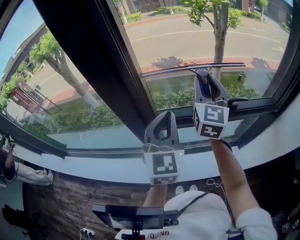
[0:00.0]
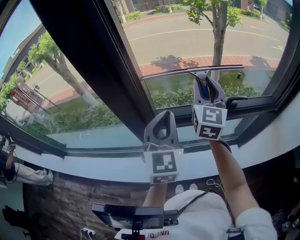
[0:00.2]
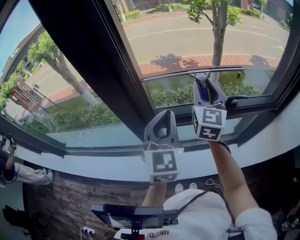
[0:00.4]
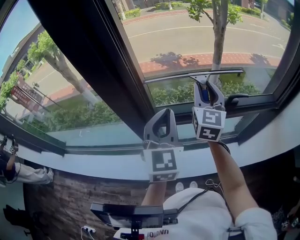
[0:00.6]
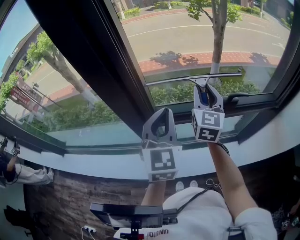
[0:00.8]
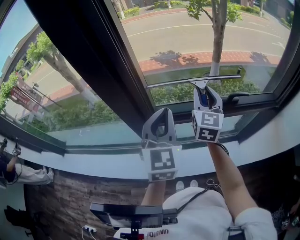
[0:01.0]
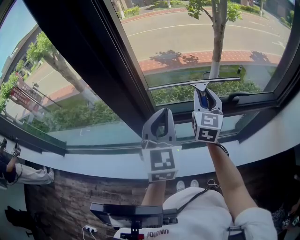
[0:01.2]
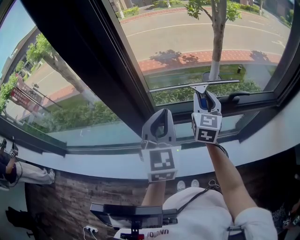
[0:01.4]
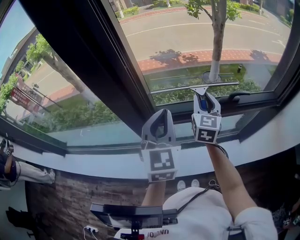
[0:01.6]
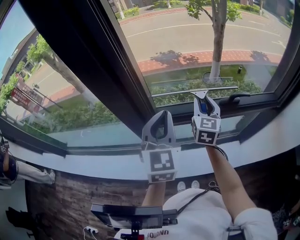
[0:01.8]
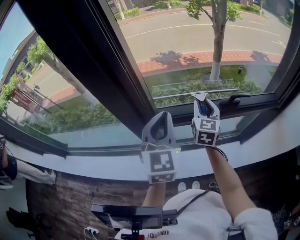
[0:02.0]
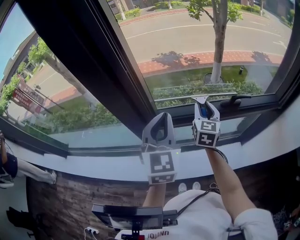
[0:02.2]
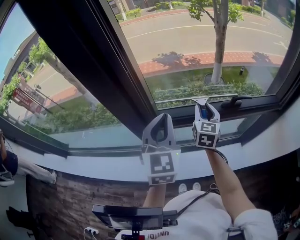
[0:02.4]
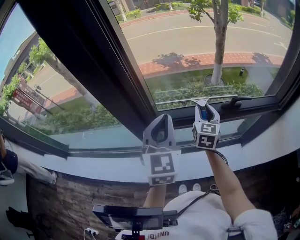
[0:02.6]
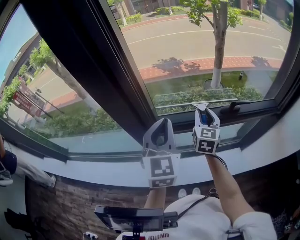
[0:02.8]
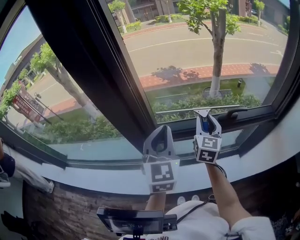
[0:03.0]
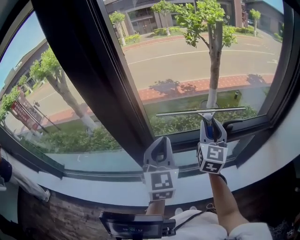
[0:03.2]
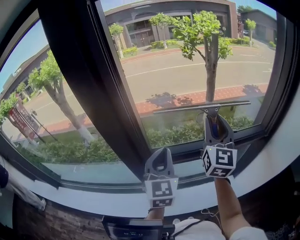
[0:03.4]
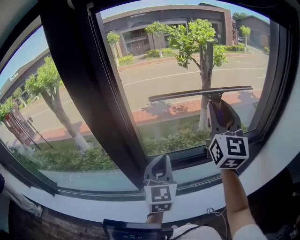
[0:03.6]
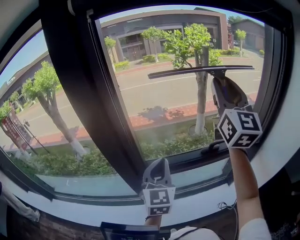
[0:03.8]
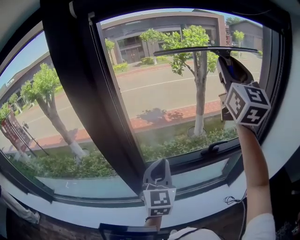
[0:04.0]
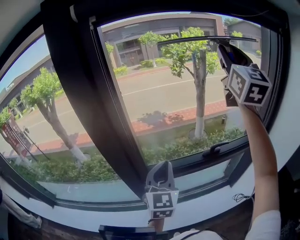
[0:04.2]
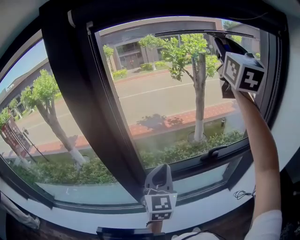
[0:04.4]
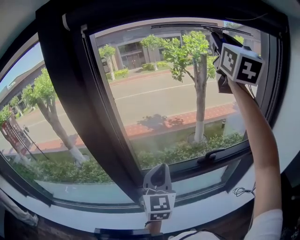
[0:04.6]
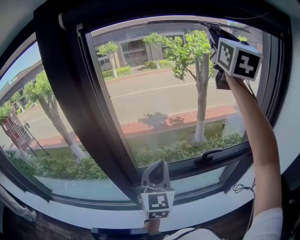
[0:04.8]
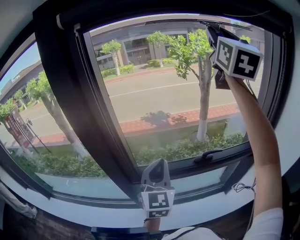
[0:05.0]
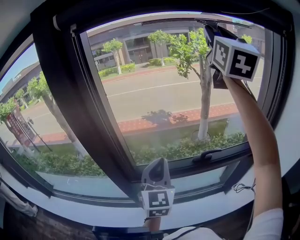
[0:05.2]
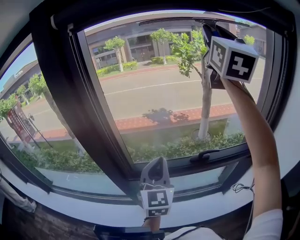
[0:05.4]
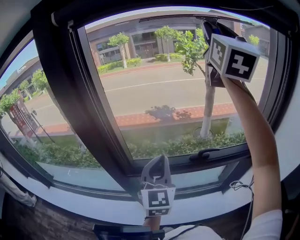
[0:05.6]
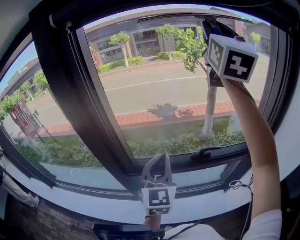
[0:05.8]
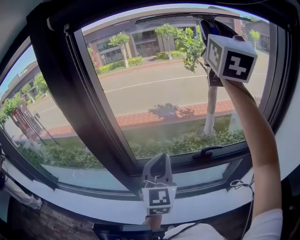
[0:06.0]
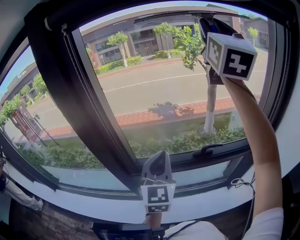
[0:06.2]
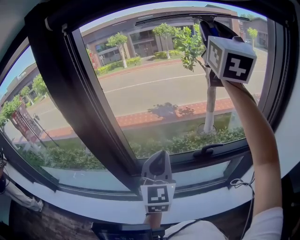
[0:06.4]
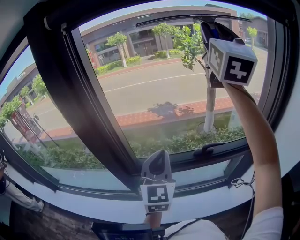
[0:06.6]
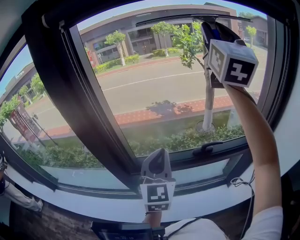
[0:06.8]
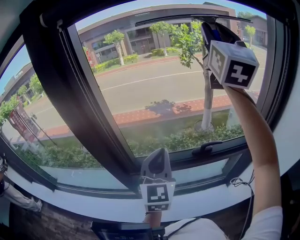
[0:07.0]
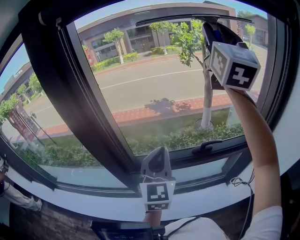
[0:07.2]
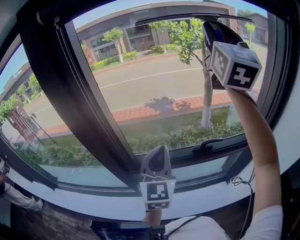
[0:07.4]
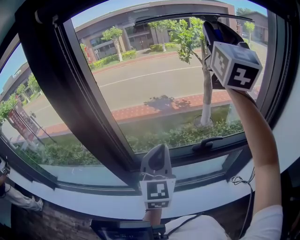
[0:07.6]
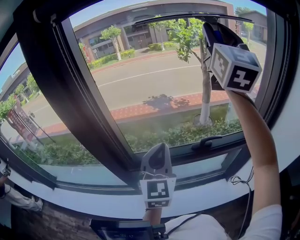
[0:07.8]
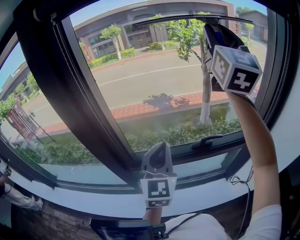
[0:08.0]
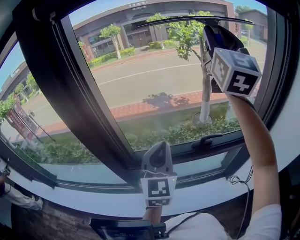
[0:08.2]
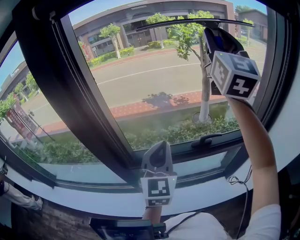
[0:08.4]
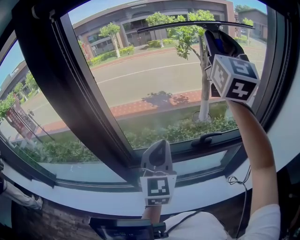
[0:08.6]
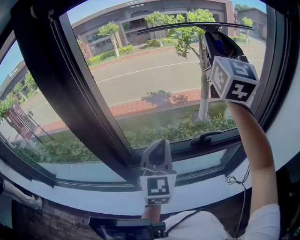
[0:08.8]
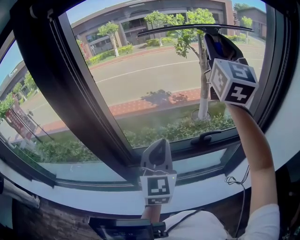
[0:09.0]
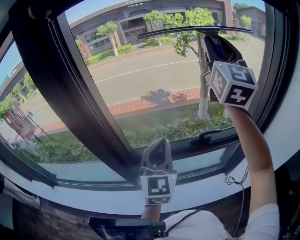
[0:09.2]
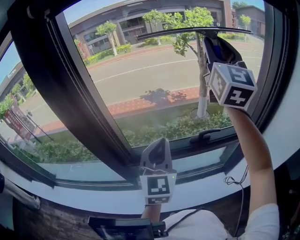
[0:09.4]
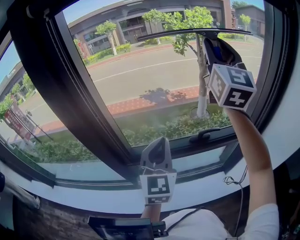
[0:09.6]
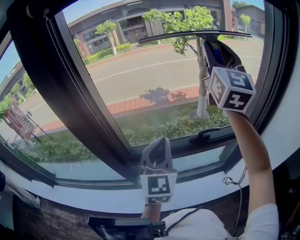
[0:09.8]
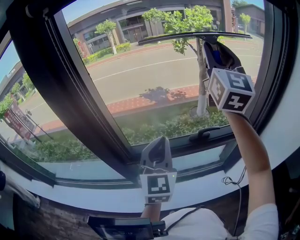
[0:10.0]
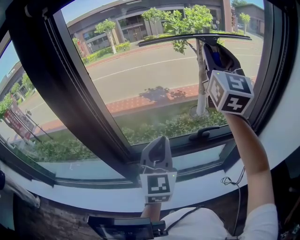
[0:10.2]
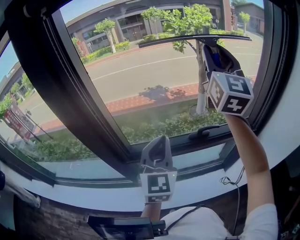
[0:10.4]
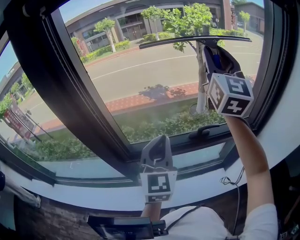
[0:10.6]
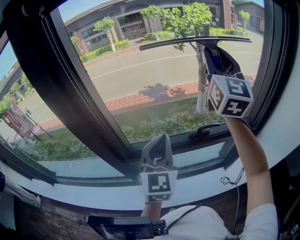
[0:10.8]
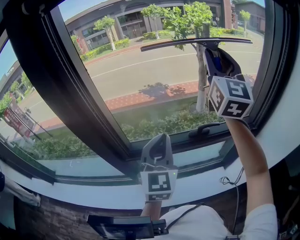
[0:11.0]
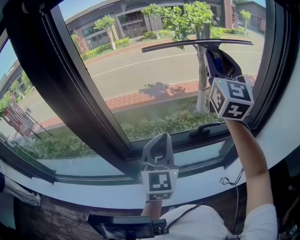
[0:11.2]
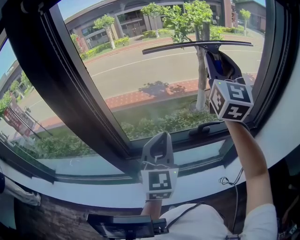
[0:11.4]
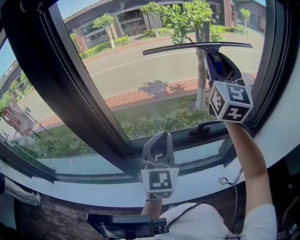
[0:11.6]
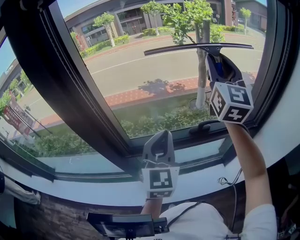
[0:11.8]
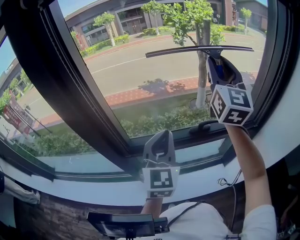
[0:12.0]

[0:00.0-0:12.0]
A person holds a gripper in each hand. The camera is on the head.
0:00.0 to 0:01.6: The right gripper moves downward, roughly 15 cm.
0:01.6 to 0:03.0: The grippers move only a little.
0:03.0 to 0:04.4: The left gripper changes place by roughly 5 cm; the right gripper heads upward, covering roughly 50 cm, and tips its fingers upward by roughly 40 degrees.
0:04.4 to 0:06.0: The left gripper shifts some 5 cm to the right.
0:06.0 to 0:07.6: There are only small adjustments of the grippers.
0:07.6 to 0:09.0: The right gripper heads downward, covering about 5 cm.
0:09.0 to 0:10.4: The right gripper travels downward by some 5 cm.
0:10.4 to 0:12.0: The right gripper heads downward, covering roughly 5 cm.

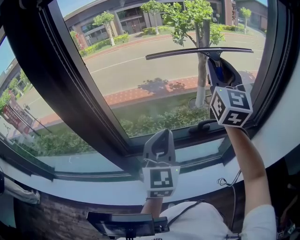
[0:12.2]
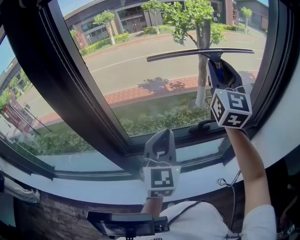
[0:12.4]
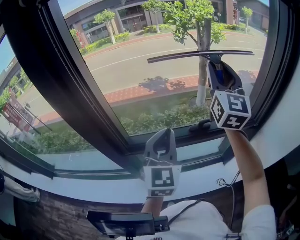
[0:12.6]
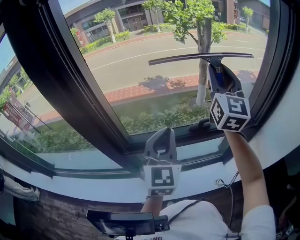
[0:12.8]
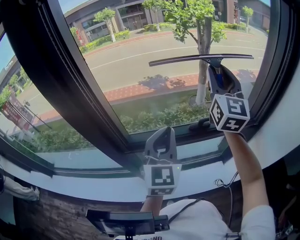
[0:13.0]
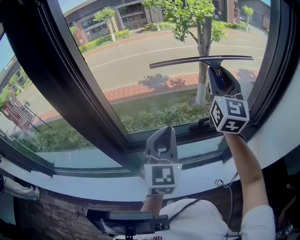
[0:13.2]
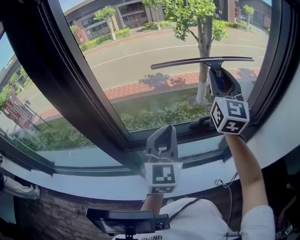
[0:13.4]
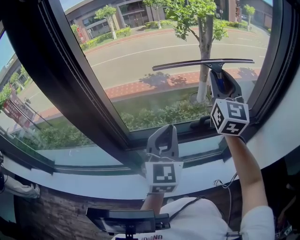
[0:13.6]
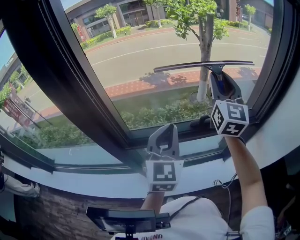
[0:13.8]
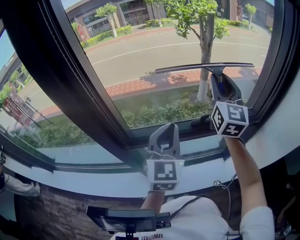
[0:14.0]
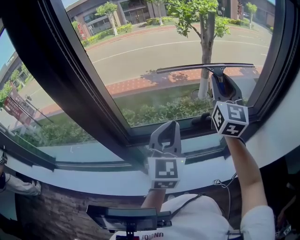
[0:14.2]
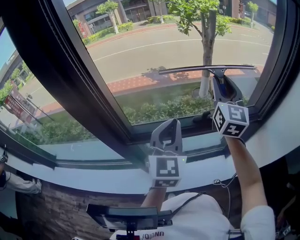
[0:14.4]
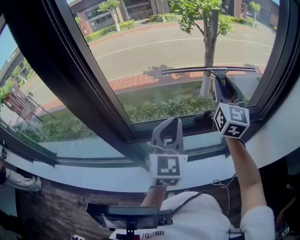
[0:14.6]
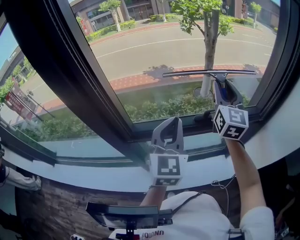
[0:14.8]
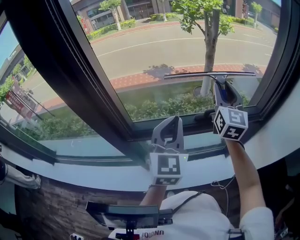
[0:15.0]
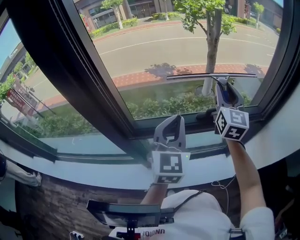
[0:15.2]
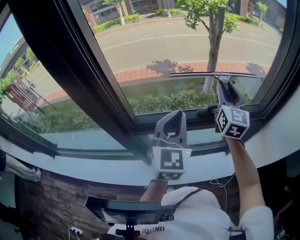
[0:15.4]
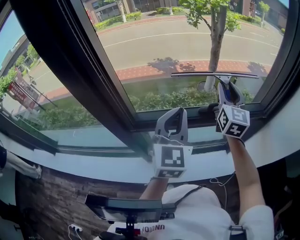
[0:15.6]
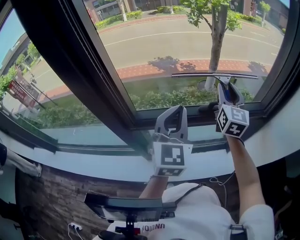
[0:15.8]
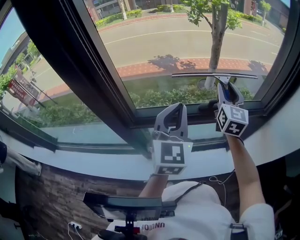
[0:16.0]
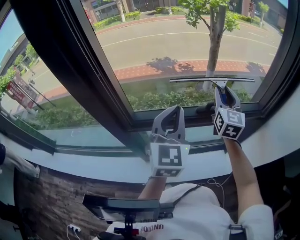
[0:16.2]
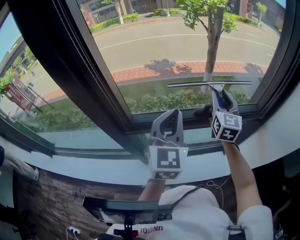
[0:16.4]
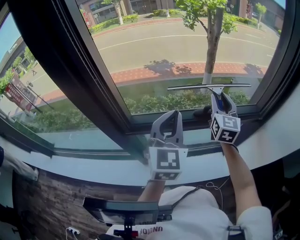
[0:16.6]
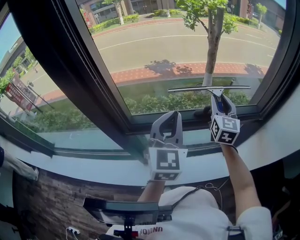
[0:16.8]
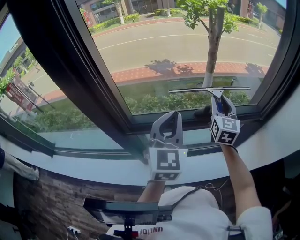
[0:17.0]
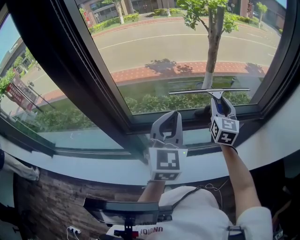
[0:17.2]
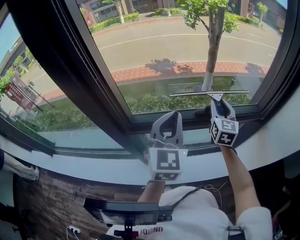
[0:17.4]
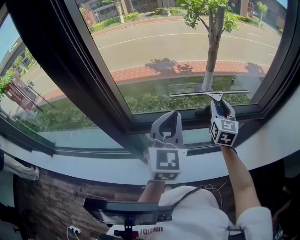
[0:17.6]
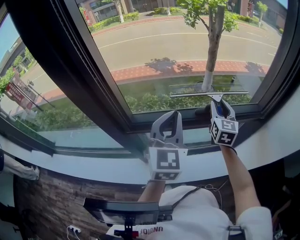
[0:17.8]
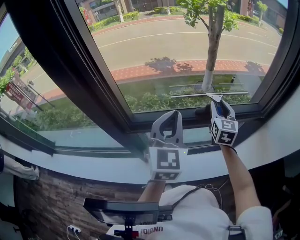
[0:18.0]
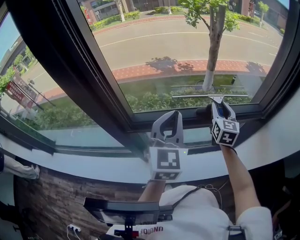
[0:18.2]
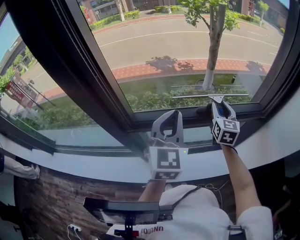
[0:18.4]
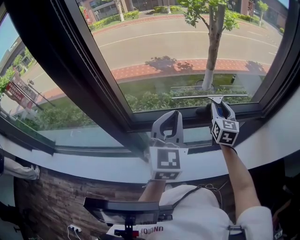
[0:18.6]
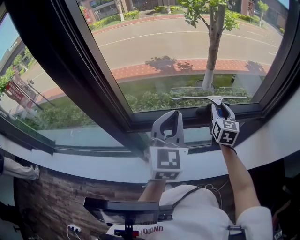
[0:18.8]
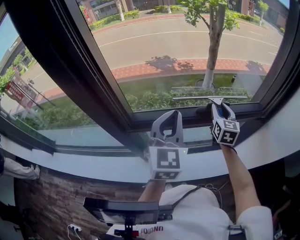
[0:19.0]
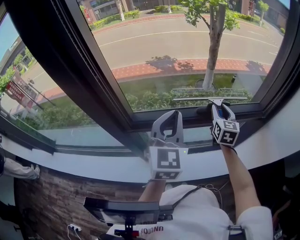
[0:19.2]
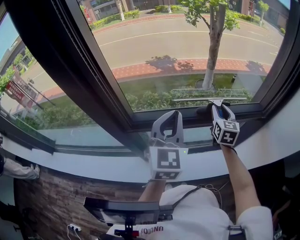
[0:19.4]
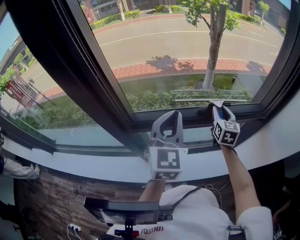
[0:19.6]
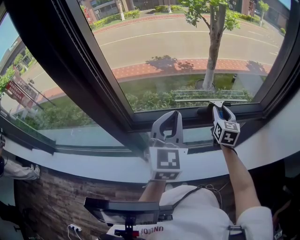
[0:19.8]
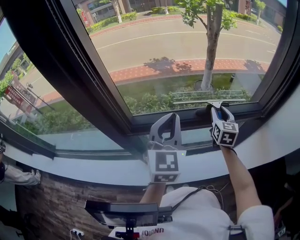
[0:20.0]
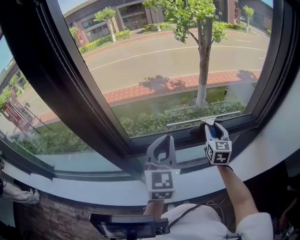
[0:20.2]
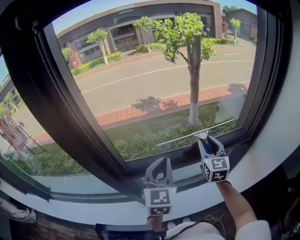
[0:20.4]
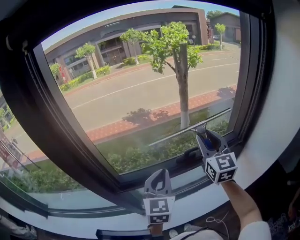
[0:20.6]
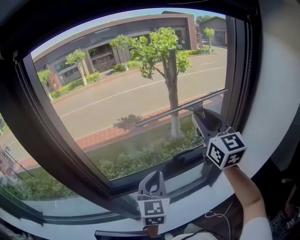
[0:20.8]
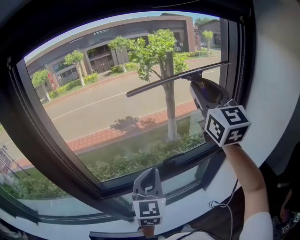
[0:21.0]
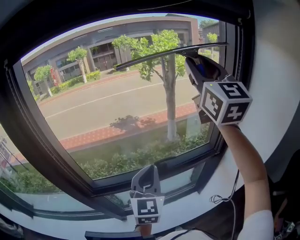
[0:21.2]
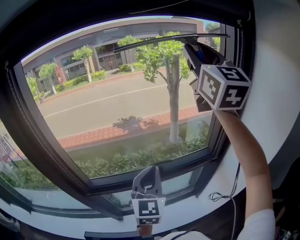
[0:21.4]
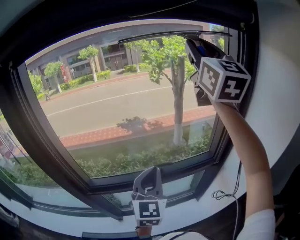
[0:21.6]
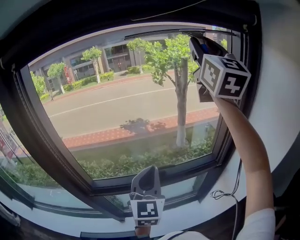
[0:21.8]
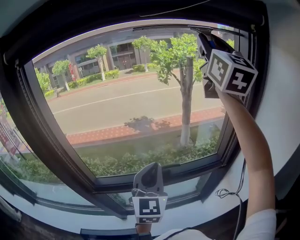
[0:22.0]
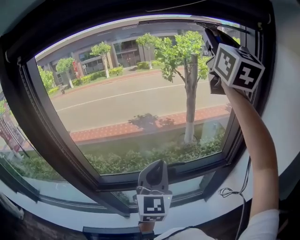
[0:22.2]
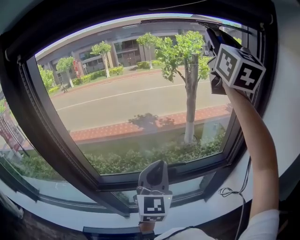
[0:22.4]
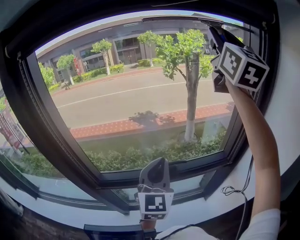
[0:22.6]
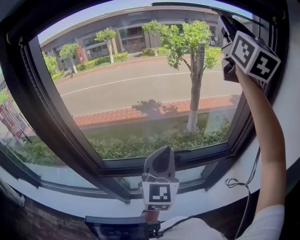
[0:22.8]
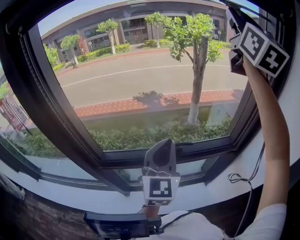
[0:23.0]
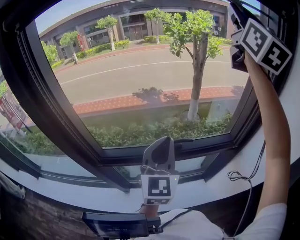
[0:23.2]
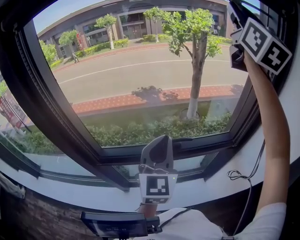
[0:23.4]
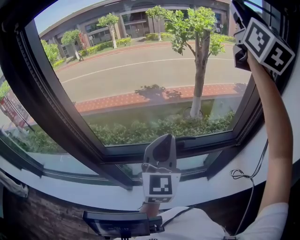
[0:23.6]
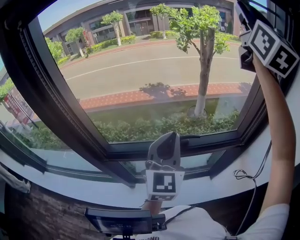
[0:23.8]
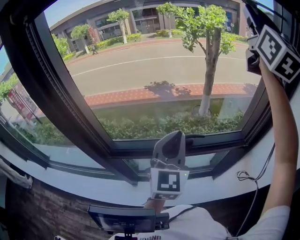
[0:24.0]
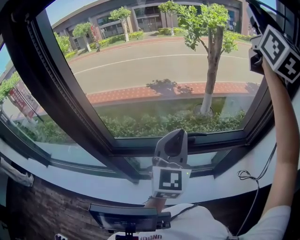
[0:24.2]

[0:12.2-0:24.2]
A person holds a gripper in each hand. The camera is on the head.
0:12.2 to 0:13.8: The right gripper travels downward by roughly 10 cm.
0:13.8 to 0:15.2: The right gripper goes about 5 cm downward.
0:15.2 to 0:16.6: The right gripper travels downward by some 5 cm.
0:16.6 to 0:18.2: The right gripper travels downward by roughly 5 cm.
0:18.2 to 0:19.8: The grippers stay close to where they were, moving slightly.
0:19.8 to 0:21.2: The left gripper is displaced to the right by some 10 cm. The right gripper moves upward, about 40 cm, and tilts its fingers about 40 degrees upward.
0:21.2 to 0:22.6: The right gripper goes some 10 cm upward and forward.
0:22.6 to 0:24.2: The grippers stay close to where they were, moving slightly.
